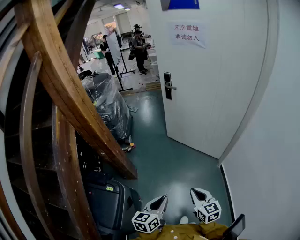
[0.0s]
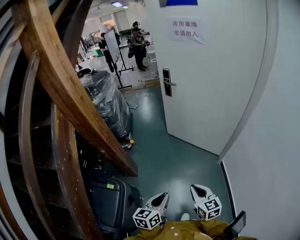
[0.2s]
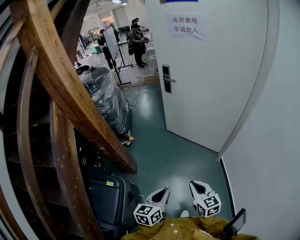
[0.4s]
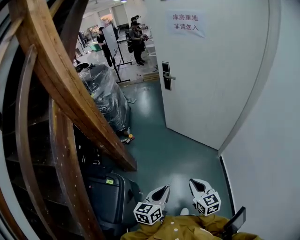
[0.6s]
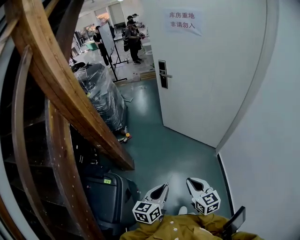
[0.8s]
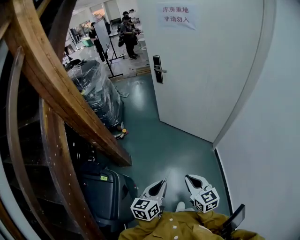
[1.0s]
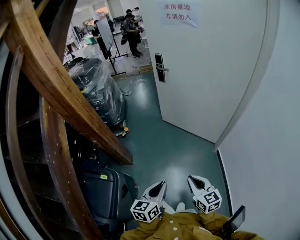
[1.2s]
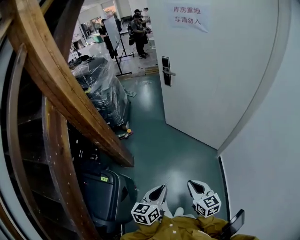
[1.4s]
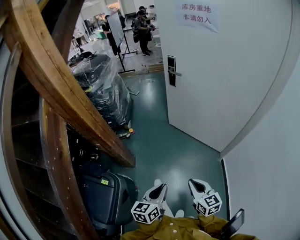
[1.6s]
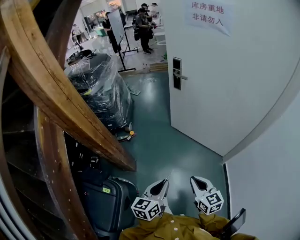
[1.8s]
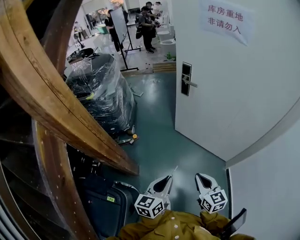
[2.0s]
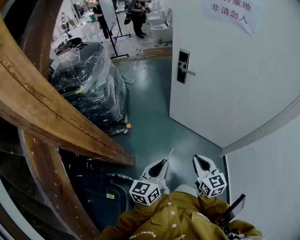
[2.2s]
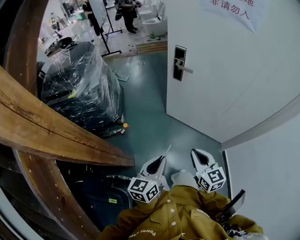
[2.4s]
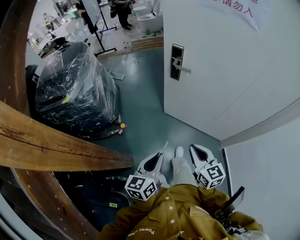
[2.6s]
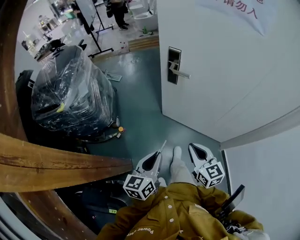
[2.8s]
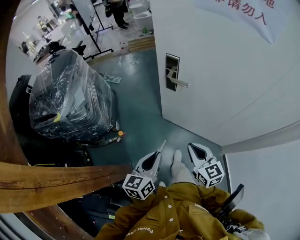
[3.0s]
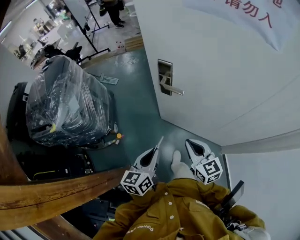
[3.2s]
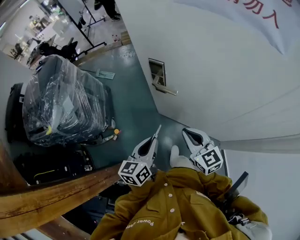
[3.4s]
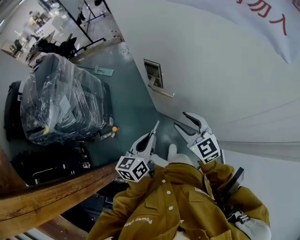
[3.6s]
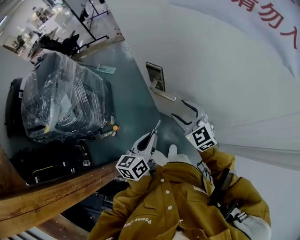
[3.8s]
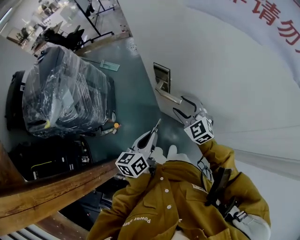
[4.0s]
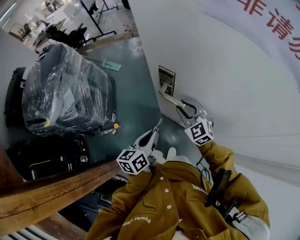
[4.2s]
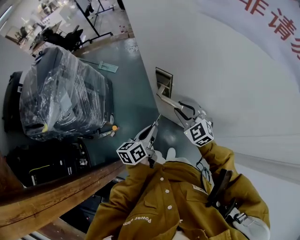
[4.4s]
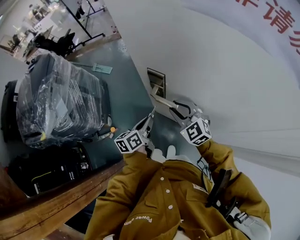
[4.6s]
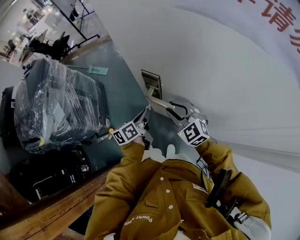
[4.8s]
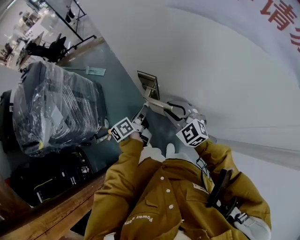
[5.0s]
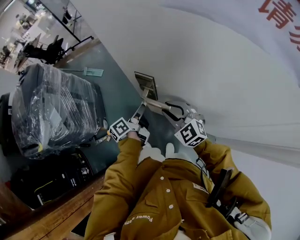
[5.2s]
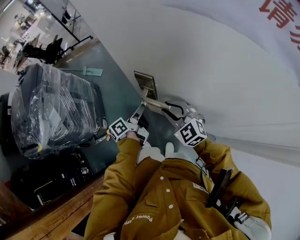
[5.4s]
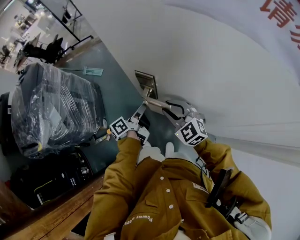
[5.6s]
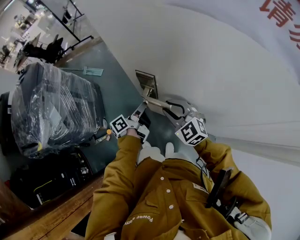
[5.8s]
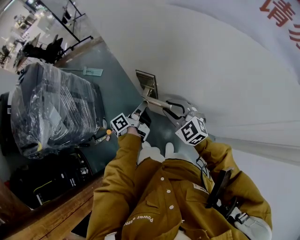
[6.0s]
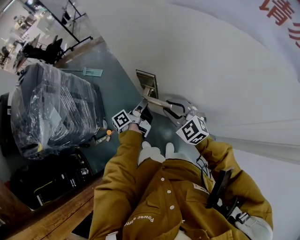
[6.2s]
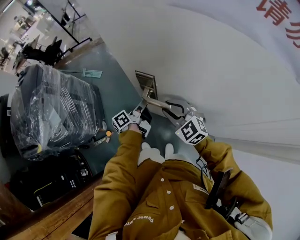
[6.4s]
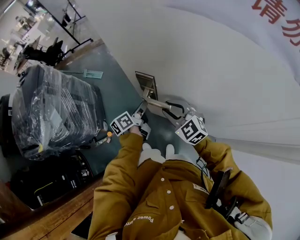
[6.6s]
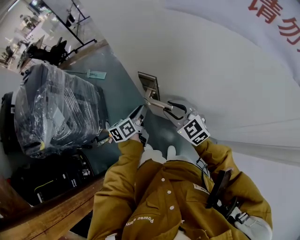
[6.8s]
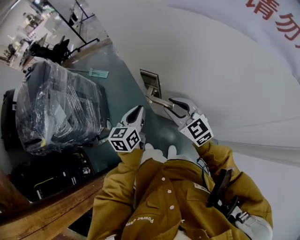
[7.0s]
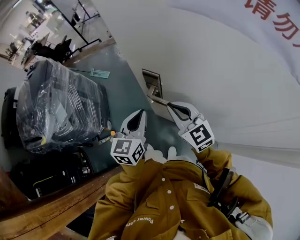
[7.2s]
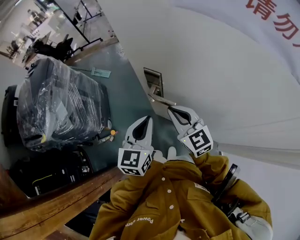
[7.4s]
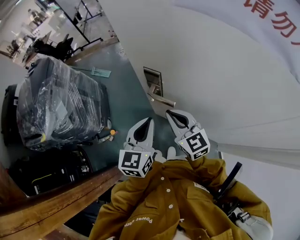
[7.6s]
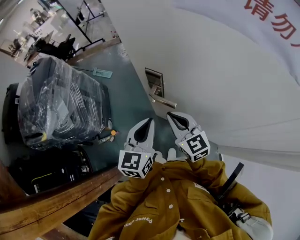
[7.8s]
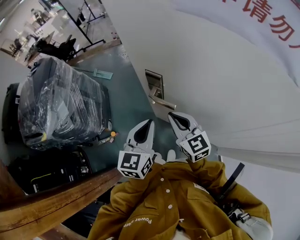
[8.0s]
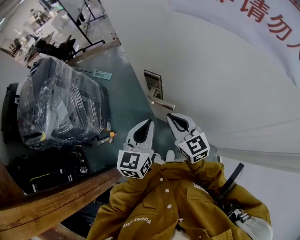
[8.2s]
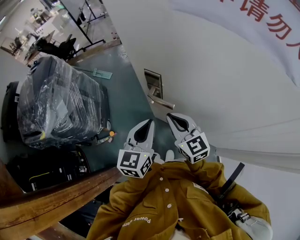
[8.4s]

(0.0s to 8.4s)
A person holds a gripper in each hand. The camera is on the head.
0.0s - 1.4s: The left gripper shifts by roughly 5 cm.
1.4s - 2.8s: The two grippers travel together, forward, some 50 cm.
2.8s - 4.2s: Both grippers move forward, roughly 35 cm. The right gripper turns by about 40 degrees, and opens up.
4.2s - 5.6s: The left gripper moves forward and downward, about 20 cm, and rotates roughly 40 degrees.
5.6s - 7.0s: The left gripper goes approximately 10 cm upward, and rolls clockwise, seen from behind, by some 60 degrees. Meanwhile the right gripper goes some 5 cm upward.
7.0s - 8.4s: The right gripper travels backward by approximately 5 cm, and closes its fingers, while the left gripper goes approximately 10 cm backward and upward.

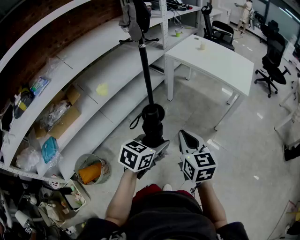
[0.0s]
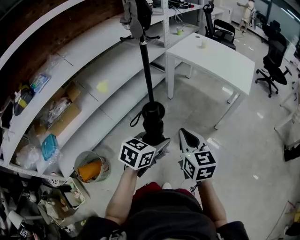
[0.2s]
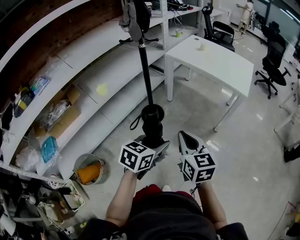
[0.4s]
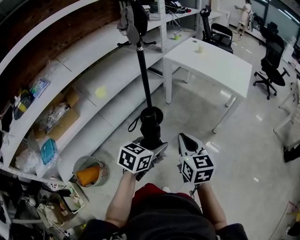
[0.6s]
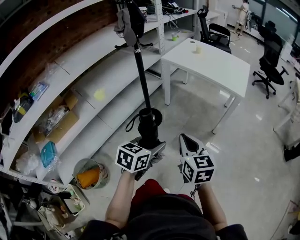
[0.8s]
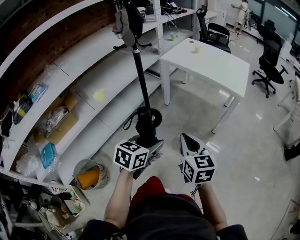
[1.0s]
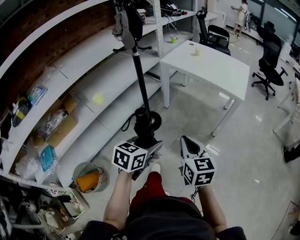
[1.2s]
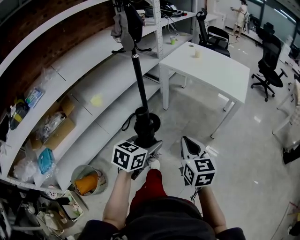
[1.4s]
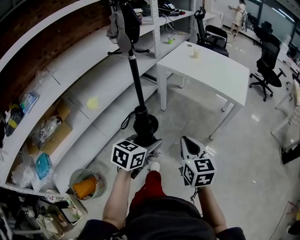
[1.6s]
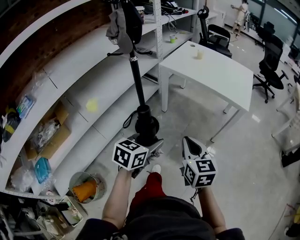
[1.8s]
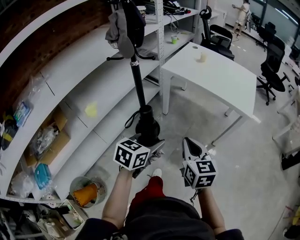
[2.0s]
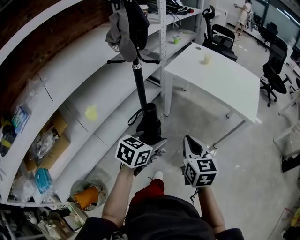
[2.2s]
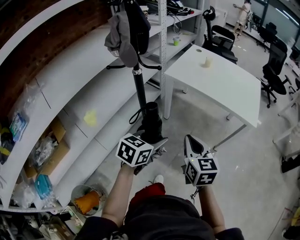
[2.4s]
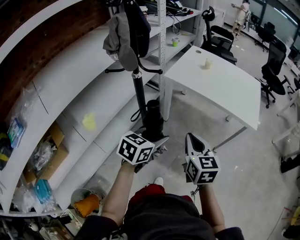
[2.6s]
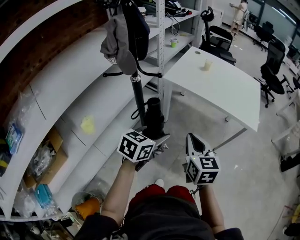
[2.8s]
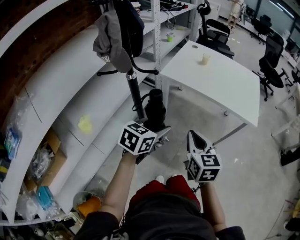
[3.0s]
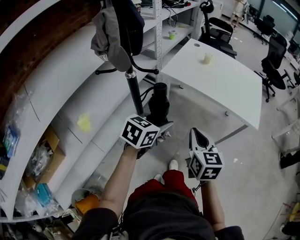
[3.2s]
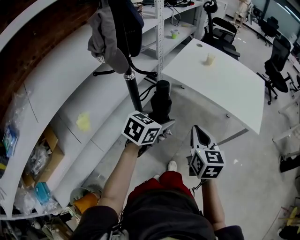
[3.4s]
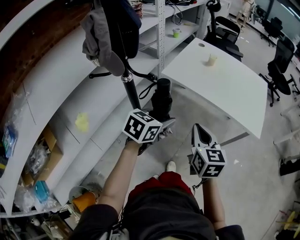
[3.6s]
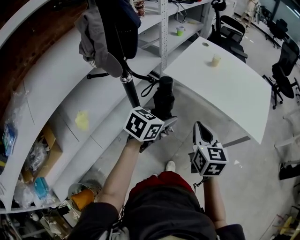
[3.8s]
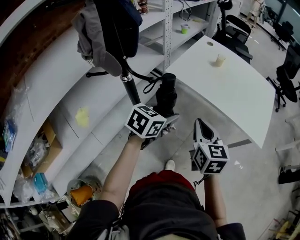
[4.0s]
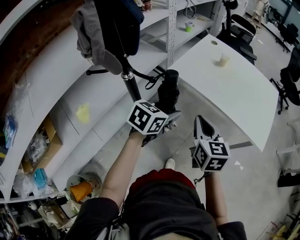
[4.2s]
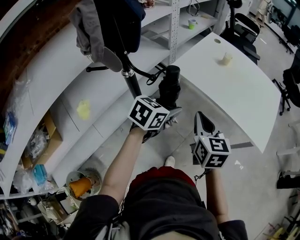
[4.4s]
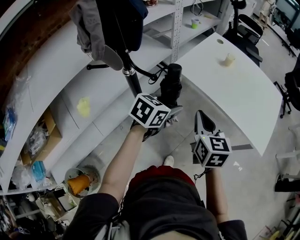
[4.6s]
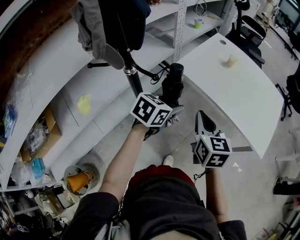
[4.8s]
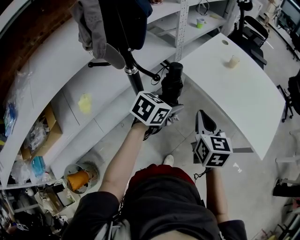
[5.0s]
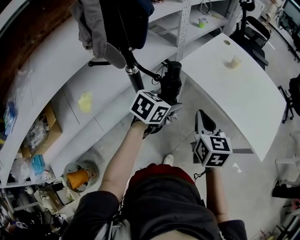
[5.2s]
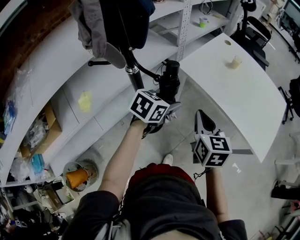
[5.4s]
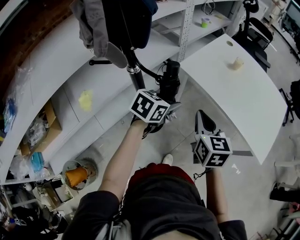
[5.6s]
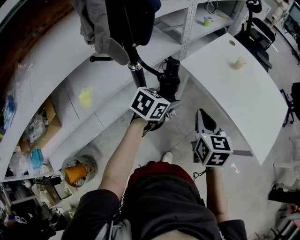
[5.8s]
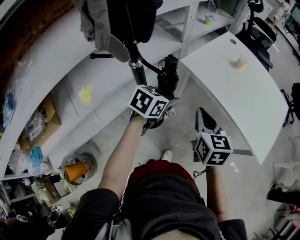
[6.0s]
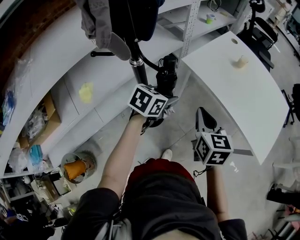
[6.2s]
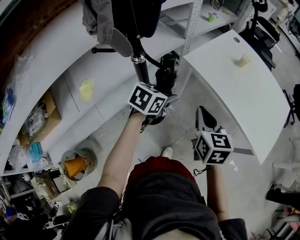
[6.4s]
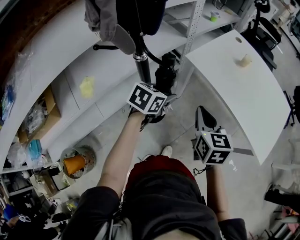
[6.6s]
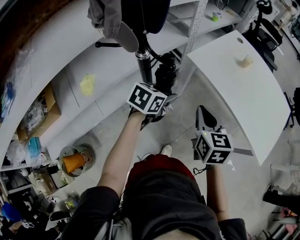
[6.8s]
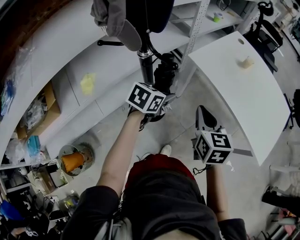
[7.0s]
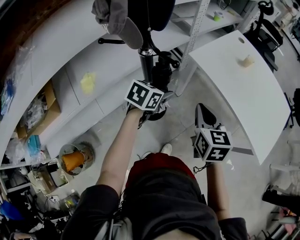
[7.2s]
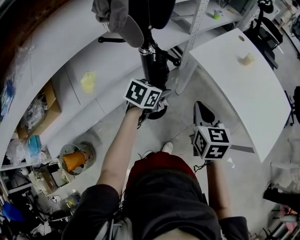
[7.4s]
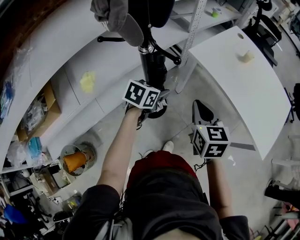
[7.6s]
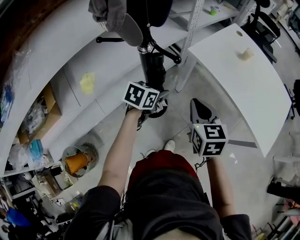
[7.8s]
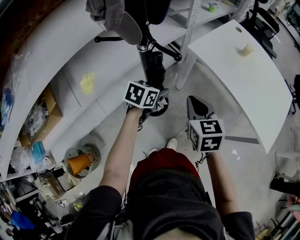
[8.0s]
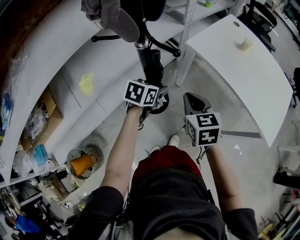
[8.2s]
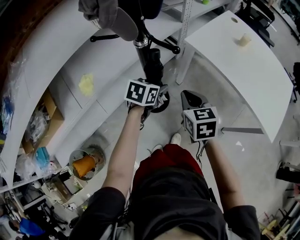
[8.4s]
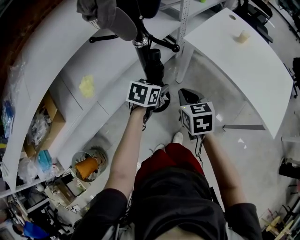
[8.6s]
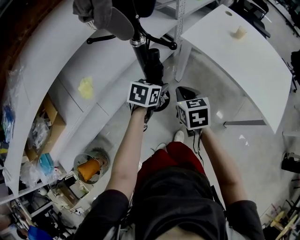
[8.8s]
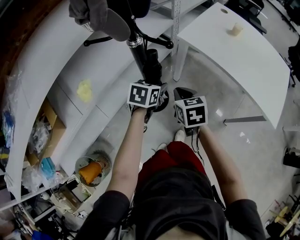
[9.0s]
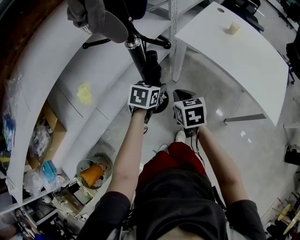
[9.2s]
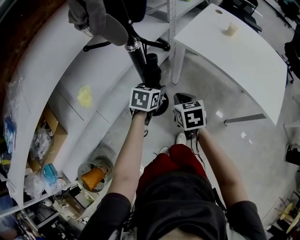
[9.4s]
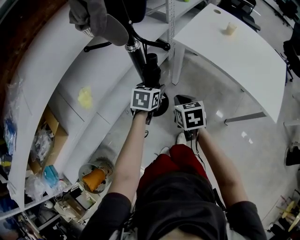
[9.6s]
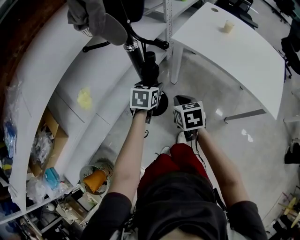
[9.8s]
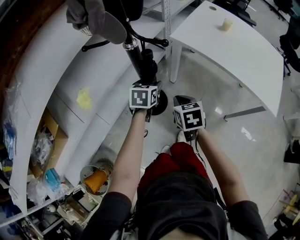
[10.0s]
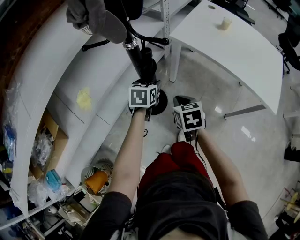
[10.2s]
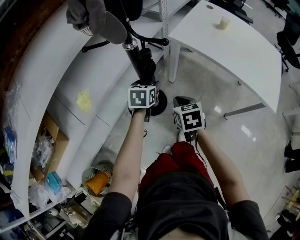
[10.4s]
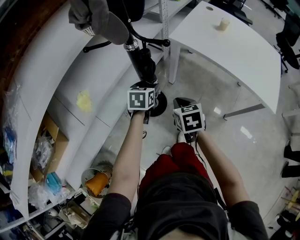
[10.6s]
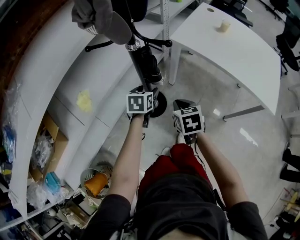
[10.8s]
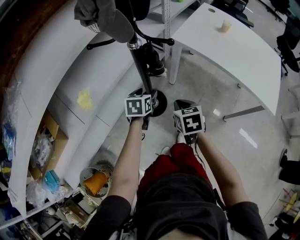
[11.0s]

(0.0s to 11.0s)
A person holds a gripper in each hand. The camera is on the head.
0.0s - 1.6s: The grippers both shift forward by approximately 10 cm.
1.6s - 3.2s: The grippers both shift forward by about 30 cm.
3.2s - 4.8s: The grippers both shift forward by some 15 cm.
4.8s - 6.2s: The left gripper goes roughly 5 cm to the left.
6.2s - 7.8s: The right gripper moves to the left, roughly 5 cm; the left gripper moves to the left and downward, some 10 cm.
7.8s - 9.4s: The right gripper travels downward by approximately 10 cm.
9.4s - 11.0s: The left gripper shifts roughly 5 cm to the left.

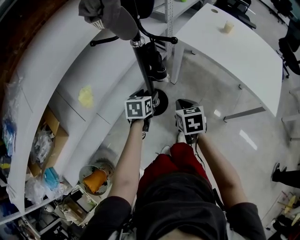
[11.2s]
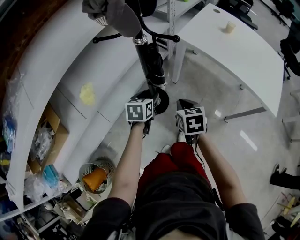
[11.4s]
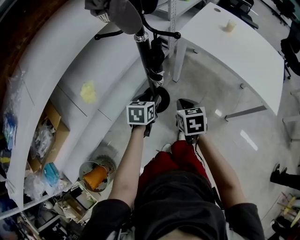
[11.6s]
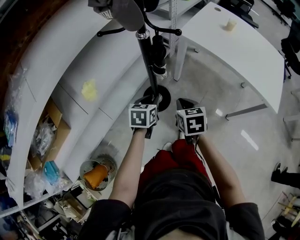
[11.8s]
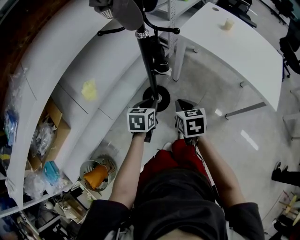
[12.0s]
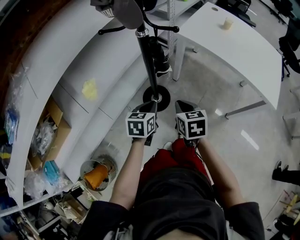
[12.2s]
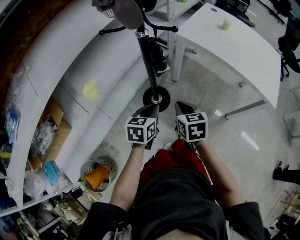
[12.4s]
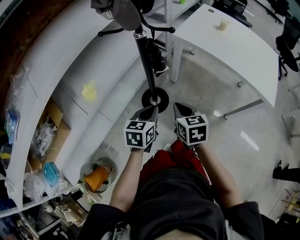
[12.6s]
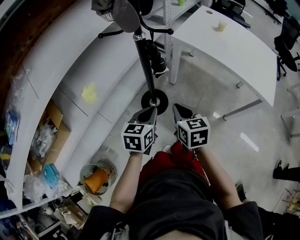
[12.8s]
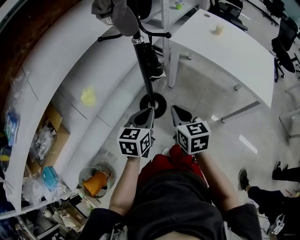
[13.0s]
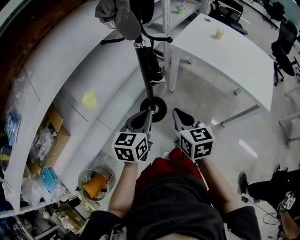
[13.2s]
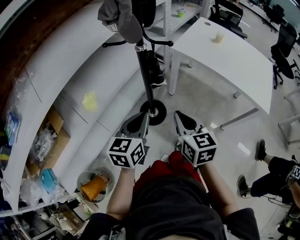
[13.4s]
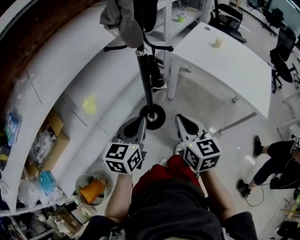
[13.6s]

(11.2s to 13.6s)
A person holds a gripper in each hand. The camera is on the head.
11.2s - 12.4s: The right gripper moves backward, about 5 cm. Meanwhile the left gripper goes approximately 15 cm backward, and closes up.
12.4s - 13.6s: The grippers both shift upward by roughly 15 cm. The right gripper changes its angle by about 20 degrees.

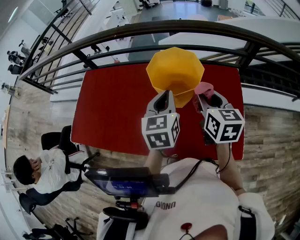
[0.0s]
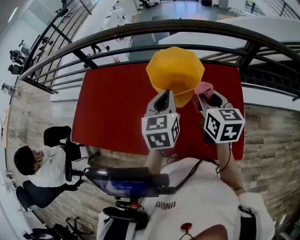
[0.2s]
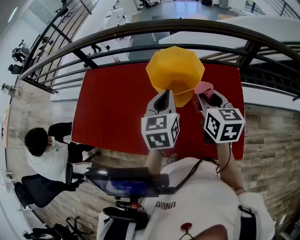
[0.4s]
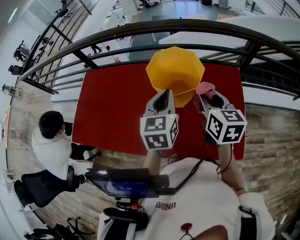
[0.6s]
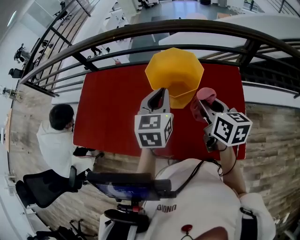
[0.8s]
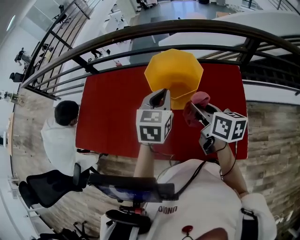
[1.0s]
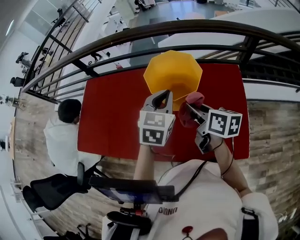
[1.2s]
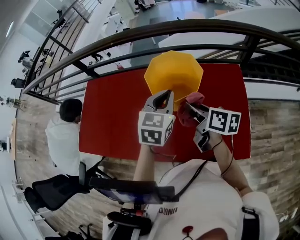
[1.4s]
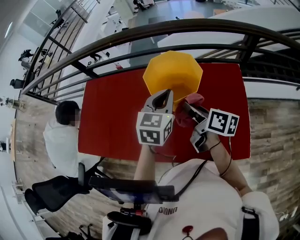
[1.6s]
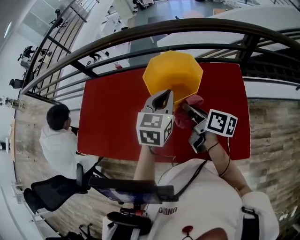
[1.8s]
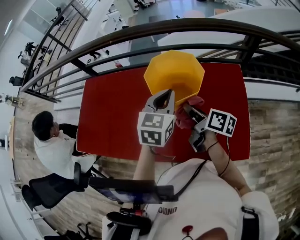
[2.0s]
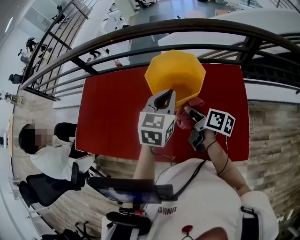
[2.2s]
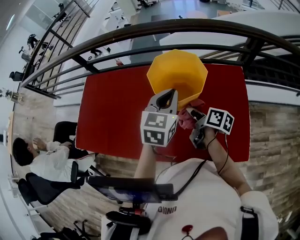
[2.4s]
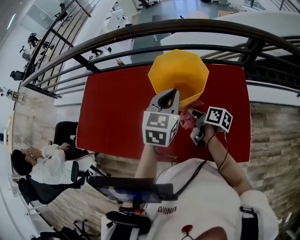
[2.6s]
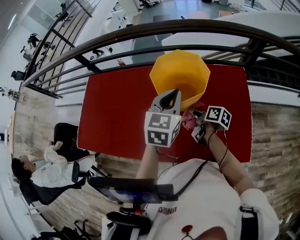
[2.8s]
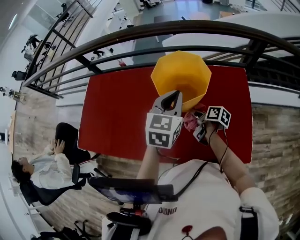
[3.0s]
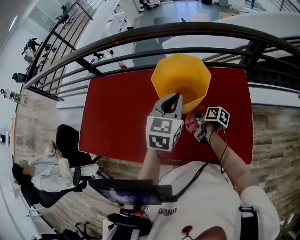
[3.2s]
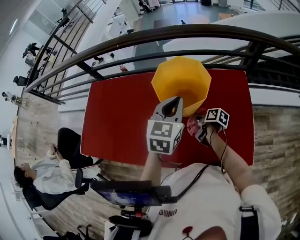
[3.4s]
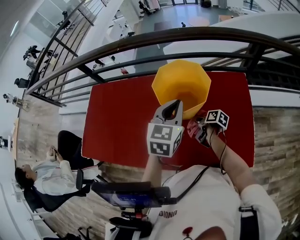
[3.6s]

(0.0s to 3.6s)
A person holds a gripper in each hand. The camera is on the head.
0.0s - 1.8s: The right gripper is displaced downward by some 5 cm, and rotates around the line of its fingers by approximately 50 degrees, clockwise from behind.
1.8s - 3.6s: The right gripper moves downward, about 20 cm, and rotates about 30 degrees.
